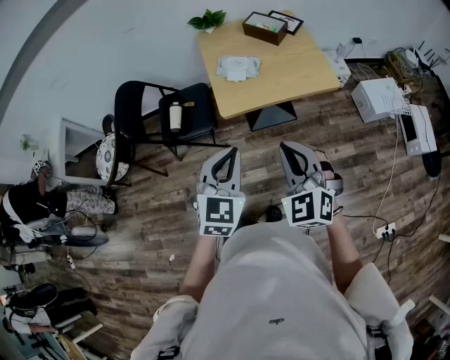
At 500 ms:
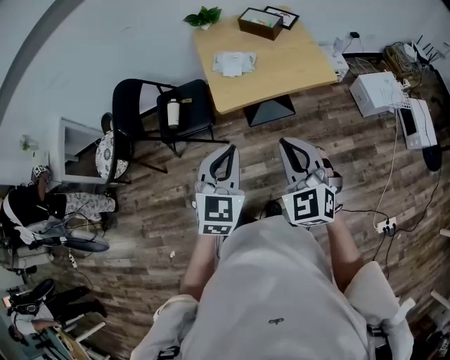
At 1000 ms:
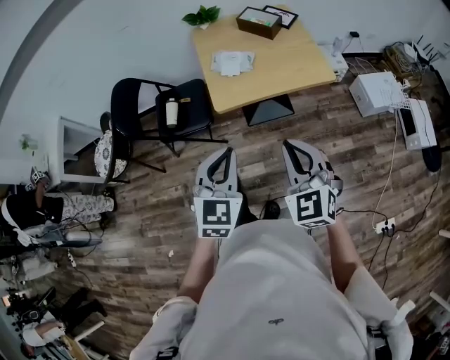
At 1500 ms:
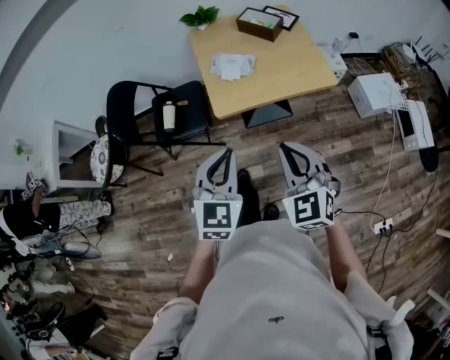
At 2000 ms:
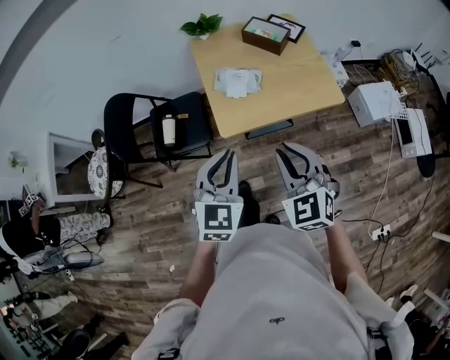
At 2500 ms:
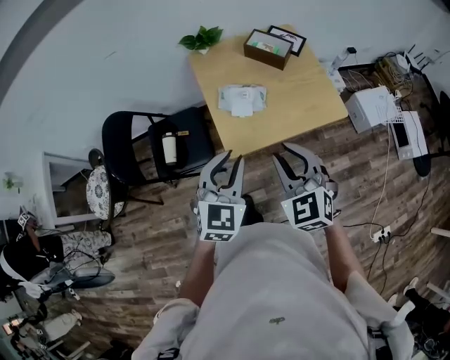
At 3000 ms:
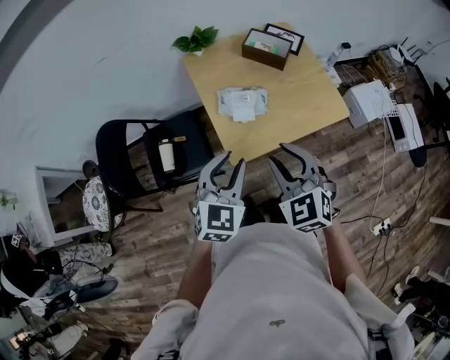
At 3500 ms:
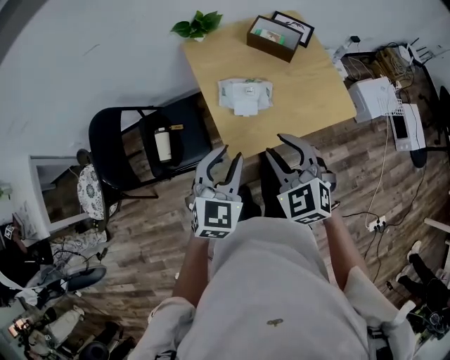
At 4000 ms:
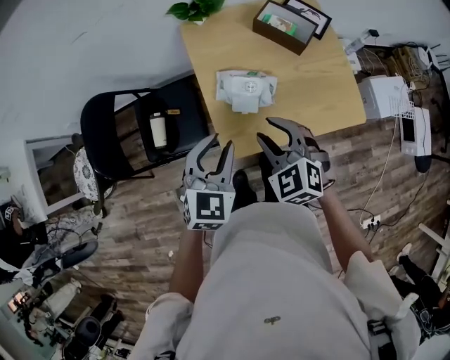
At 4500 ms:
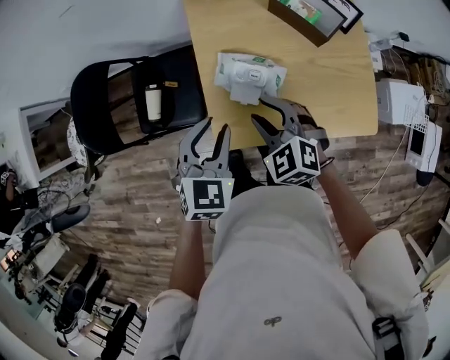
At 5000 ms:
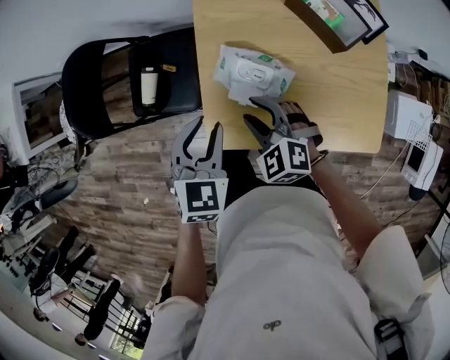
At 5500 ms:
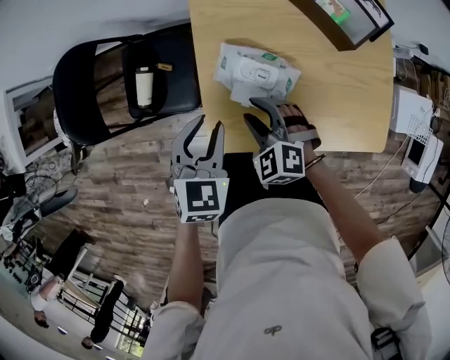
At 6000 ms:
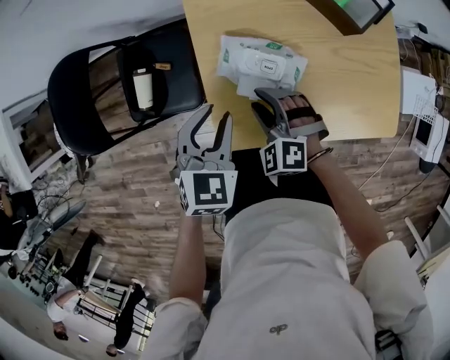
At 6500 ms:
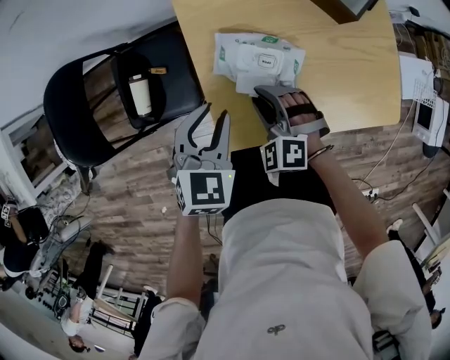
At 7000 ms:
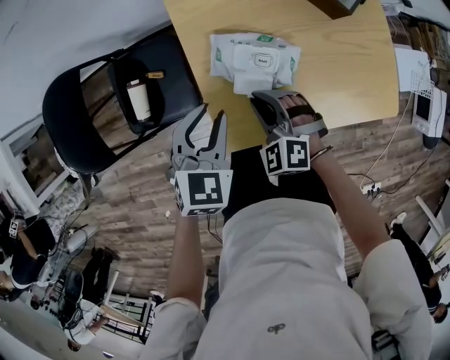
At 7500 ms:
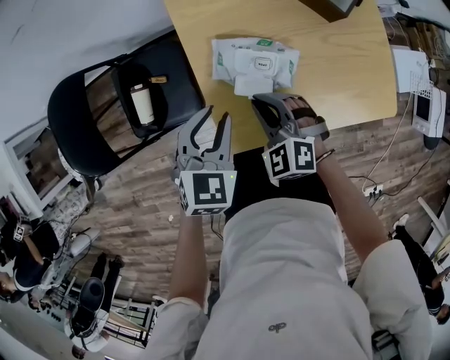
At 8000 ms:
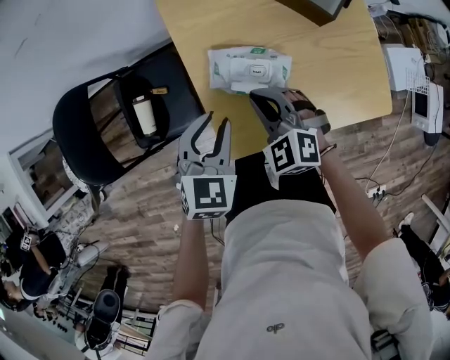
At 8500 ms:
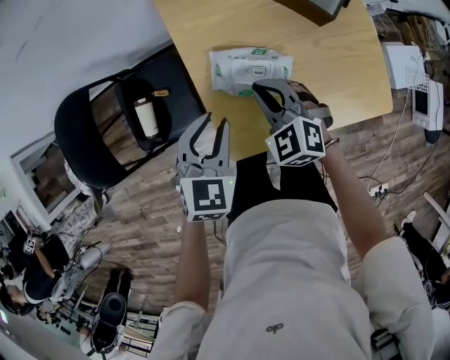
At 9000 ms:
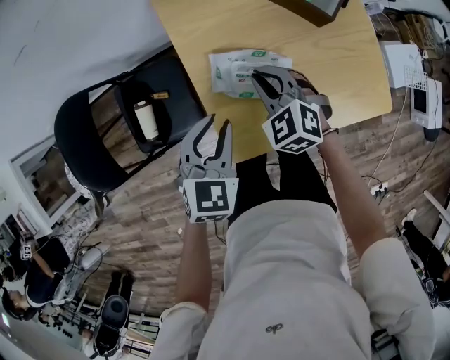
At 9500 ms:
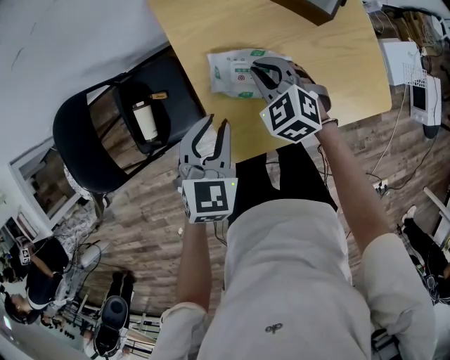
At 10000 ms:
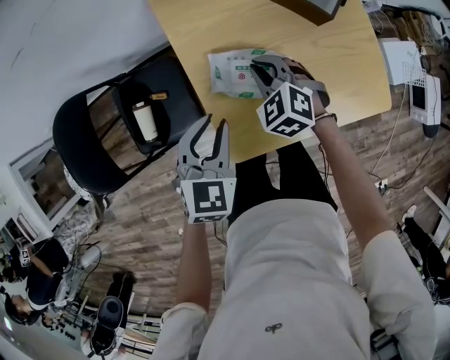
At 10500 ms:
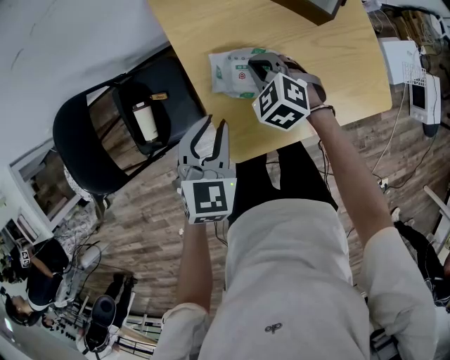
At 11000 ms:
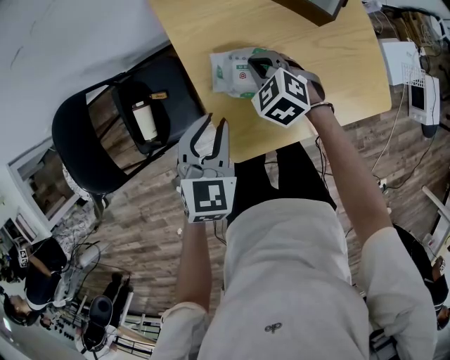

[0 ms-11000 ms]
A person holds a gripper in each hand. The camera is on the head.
0 ms to 2000 ms: Both grippers move forward, approximately 10 cm.
2000 ms to 3500 ms: The grippers both shift forward and to the left by about 15 cm. The right gripper opens up; the left gripper opens up.
3500 ms to 5500 ms: The left gripper goes roughly 15 cm downward, and turns by some 30 degrees; the right gripper shifts roughly 25 cm downward, and rotates roughly 30 degrees.
5500 ms to 7500 ms: The right gripper closes.
7500 ms to 9000 ms: The right gripper is displaced forward by roughly 10 cm.
9000 ms to 11000 ms: The right gripper shifts by approximately 5 cm.

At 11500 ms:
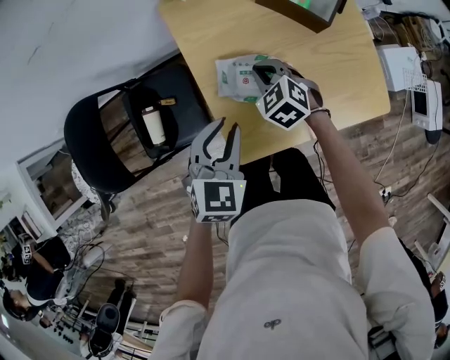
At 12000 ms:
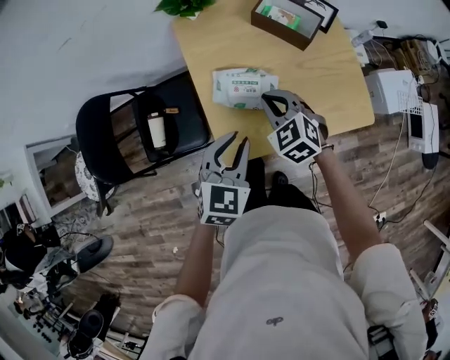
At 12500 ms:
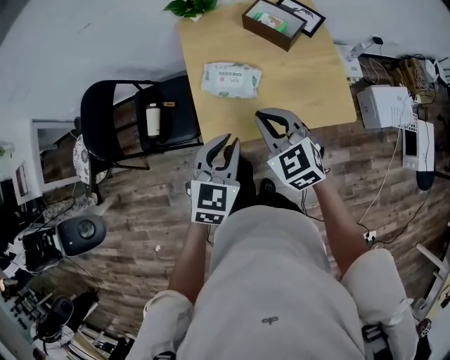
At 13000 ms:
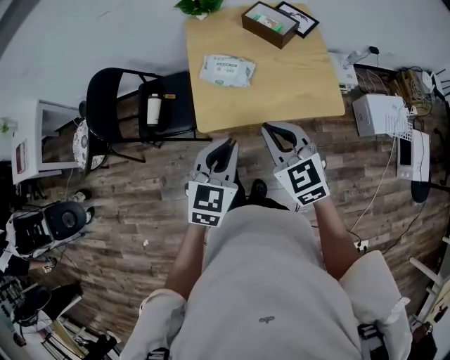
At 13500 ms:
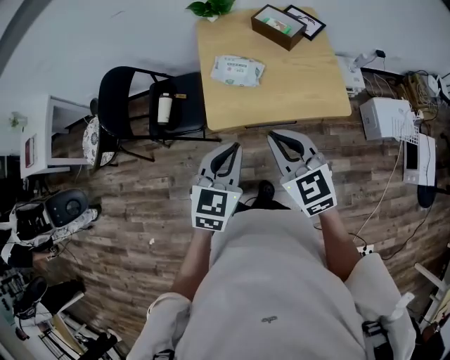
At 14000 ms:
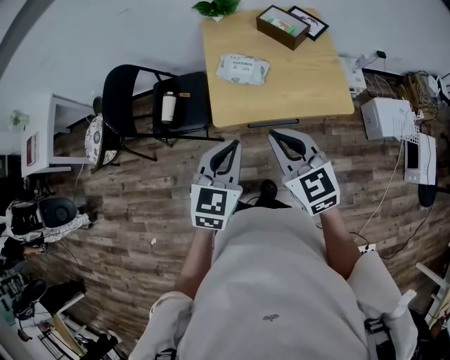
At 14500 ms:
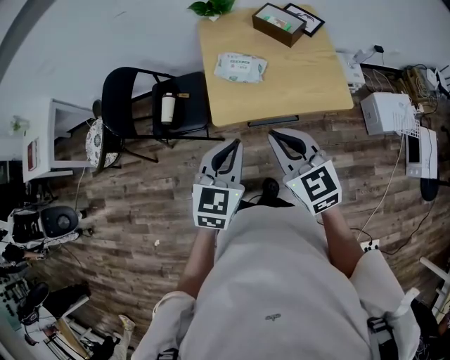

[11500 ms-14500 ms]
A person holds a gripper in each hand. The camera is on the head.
11500 ms to 13000 ms: The left gripper is displaced backward, to the right and upward by about 30 cm, while the right gripper moves backward and upward, some 40 cm, and swivels approximately 30 degrees.
13000 ms to 14500 ms: The right gripper shifts roughly 5 cm backward. Meanwhile the left gripper ends up approximately 5 cm from where it was.

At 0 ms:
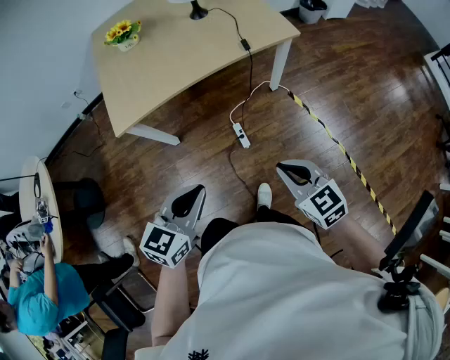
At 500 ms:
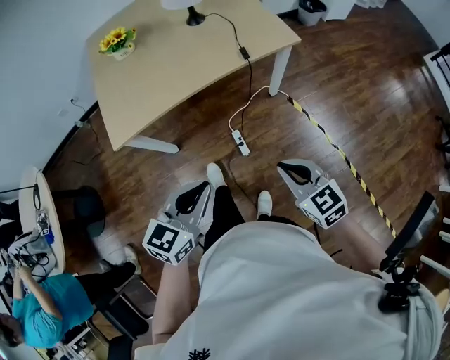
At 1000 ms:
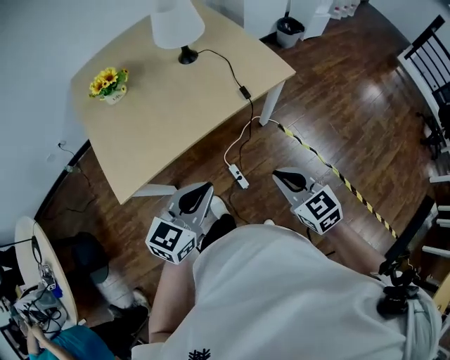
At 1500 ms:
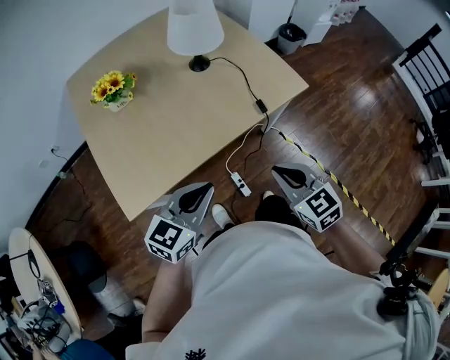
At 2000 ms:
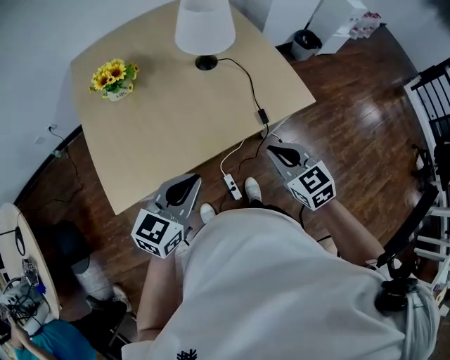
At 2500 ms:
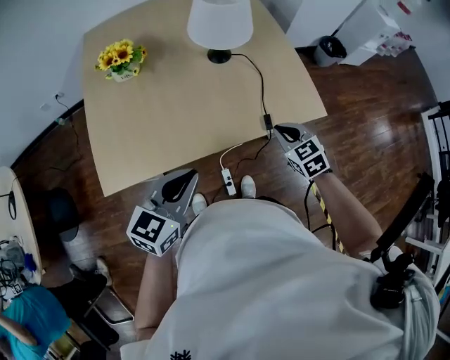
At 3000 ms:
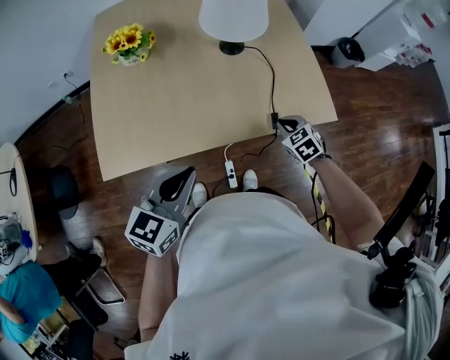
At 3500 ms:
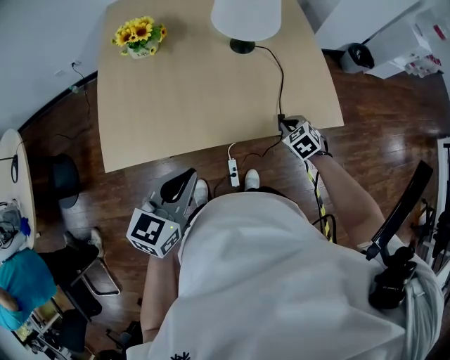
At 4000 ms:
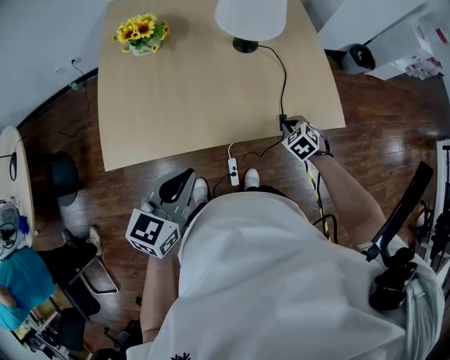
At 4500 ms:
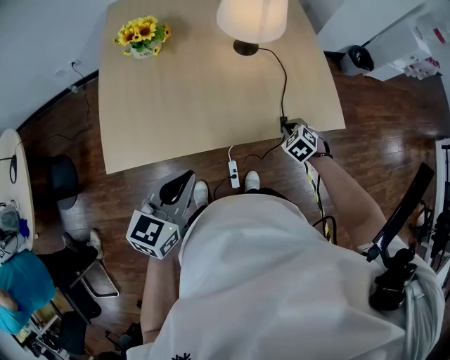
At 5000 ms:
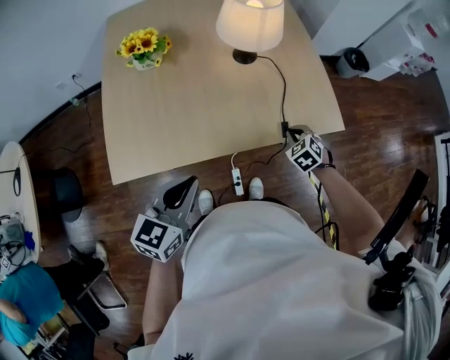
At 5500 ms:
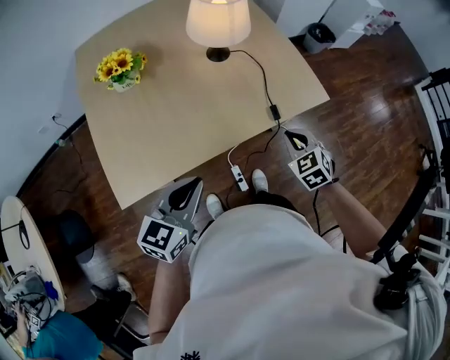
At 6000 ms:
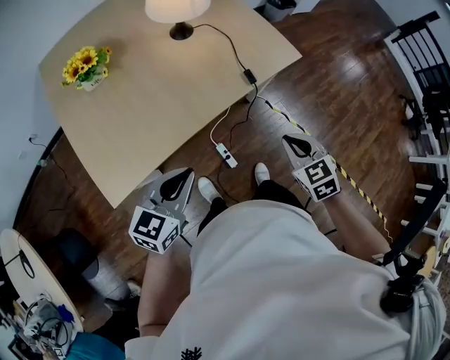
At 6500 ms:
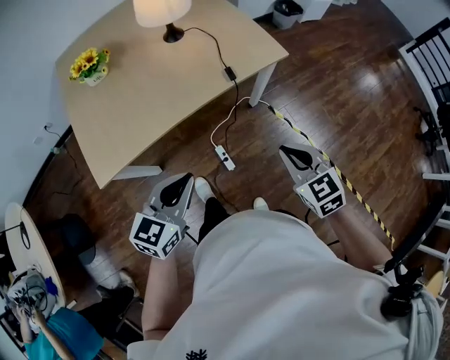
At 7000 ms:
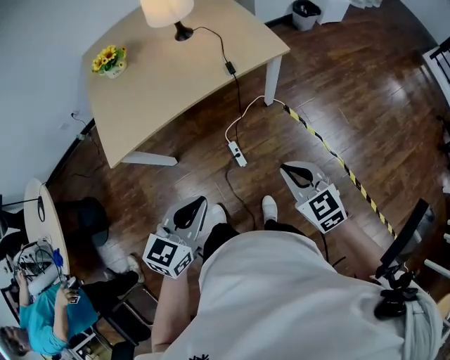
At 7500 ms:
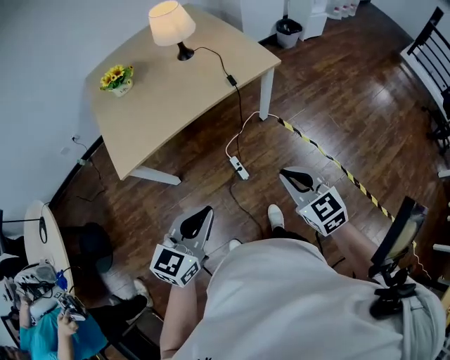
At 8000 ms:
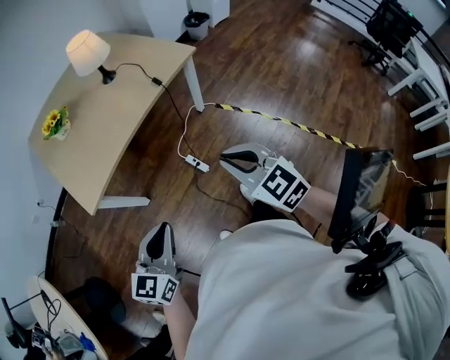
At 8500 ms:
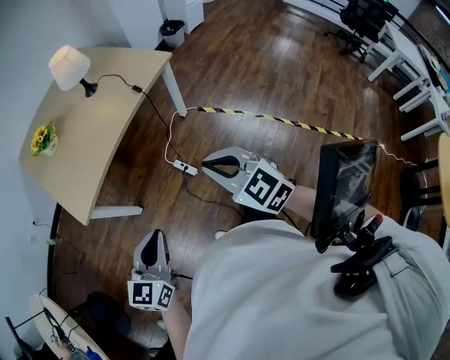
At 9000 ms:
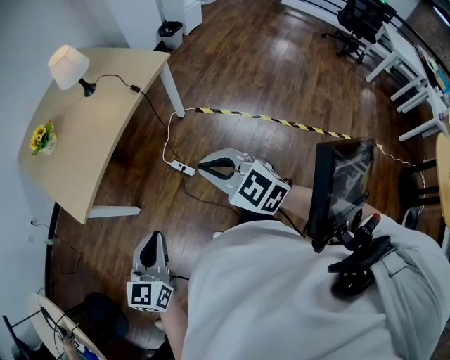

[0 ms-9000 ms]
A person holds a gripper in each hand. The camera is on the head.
0 ms to 2000 ms: Both grippers move forward, approximately 35 cm.
2000 ms to 4500 ms: The left gripper rotates some 20 degrees; the right gripper is displaced downward and forward by roughly 25 cm, and angles its fingers downward, by roughly 30 degrees.
4500 ms to 7000 ms: The left gripper is displaced backward and to the right by roughly 30 cm. The right gripper goes approximately 40 cm backward and upward, and tilts its fingers roughly 40 degrees upward.
7000 ms to 9000 ms: The left gripper is displaced backward and to the left by roughly 20 cm; the right gripper is displaced backward, to the left and upward by some 25 cm.

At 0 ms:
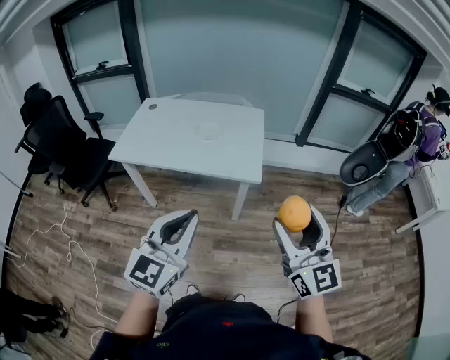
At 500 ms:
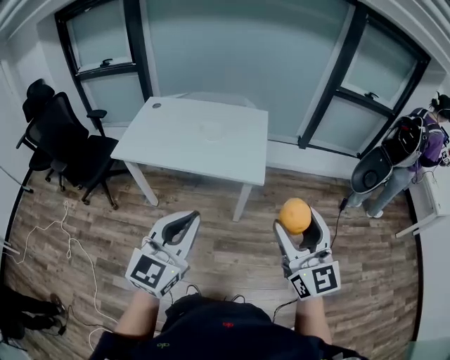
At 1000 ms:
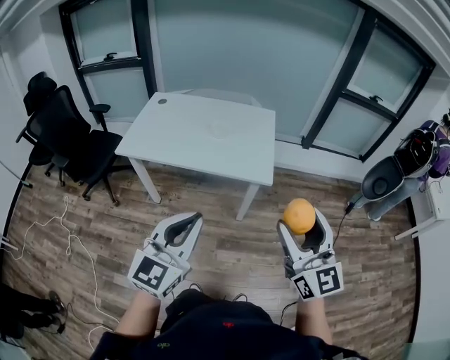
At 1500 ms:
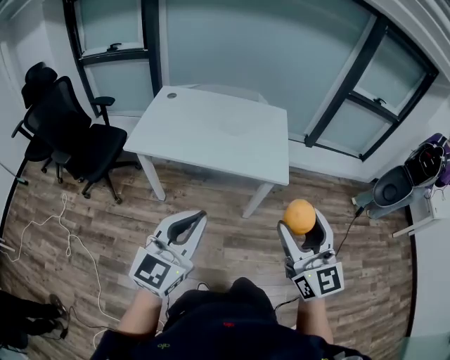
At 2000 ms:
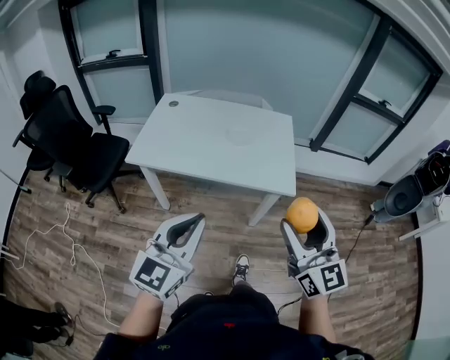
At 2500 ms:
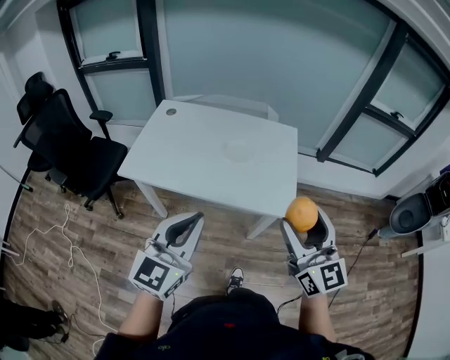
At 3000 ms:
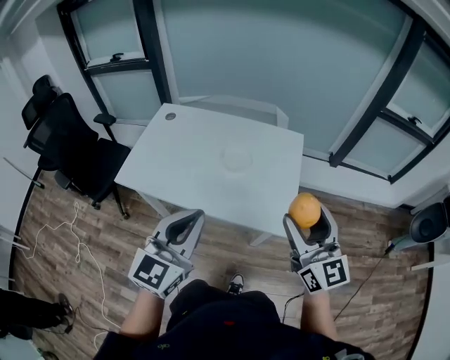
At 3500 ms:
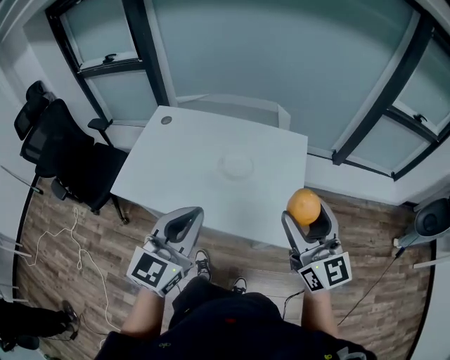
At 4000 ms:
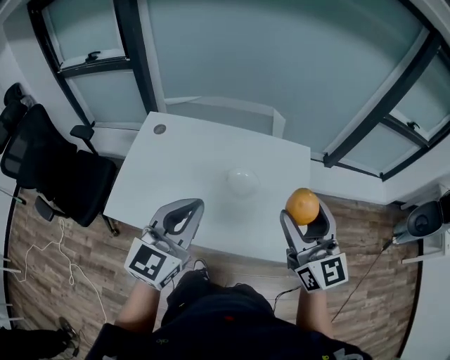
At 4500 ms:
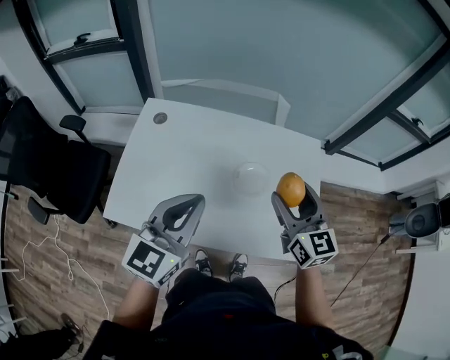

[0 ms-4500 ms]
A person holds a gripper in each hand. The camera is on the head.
0 ms to 2000 ms: The left gripper travels to the left by about 20 cm. The right gripper travels to the left and forward by approximately 20 cm.
2000 ms to 4500 ms: The two grippers travel together, forward, about 50 cm.
